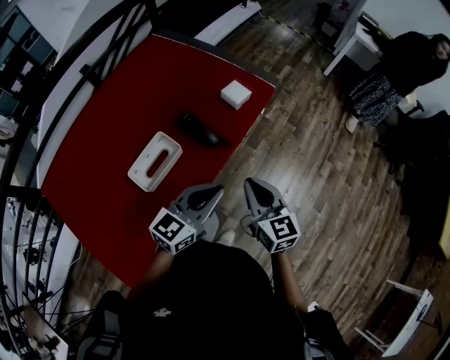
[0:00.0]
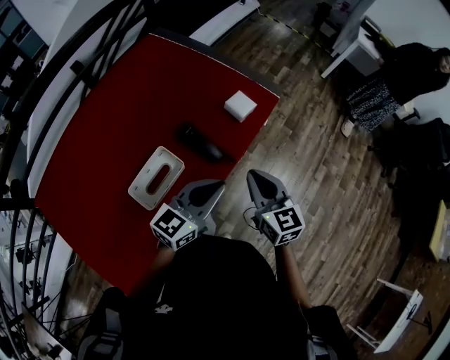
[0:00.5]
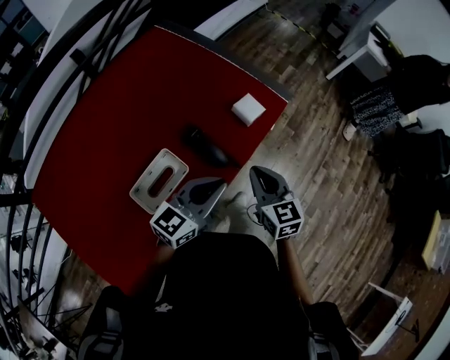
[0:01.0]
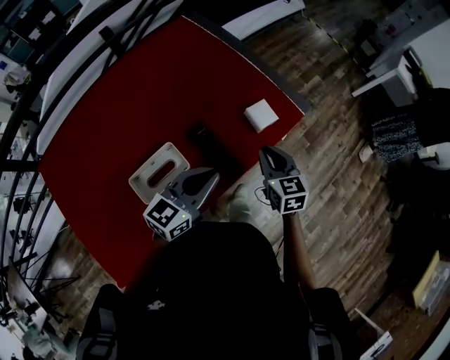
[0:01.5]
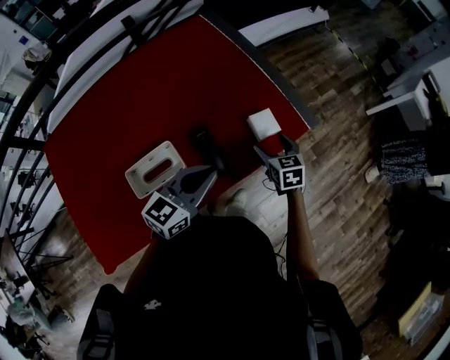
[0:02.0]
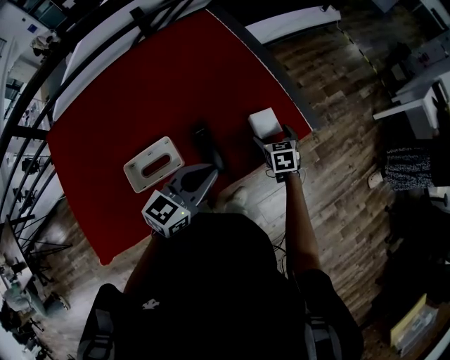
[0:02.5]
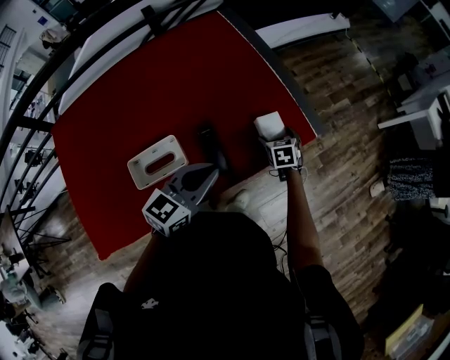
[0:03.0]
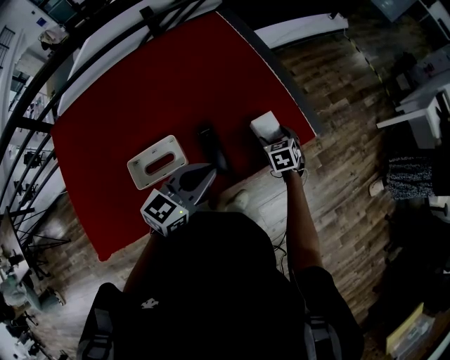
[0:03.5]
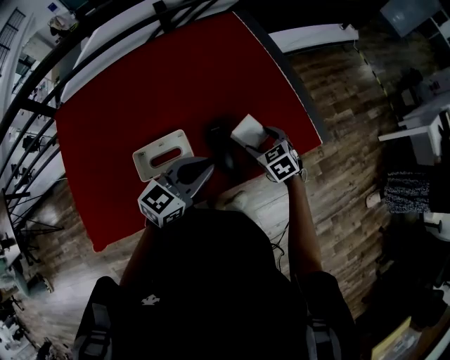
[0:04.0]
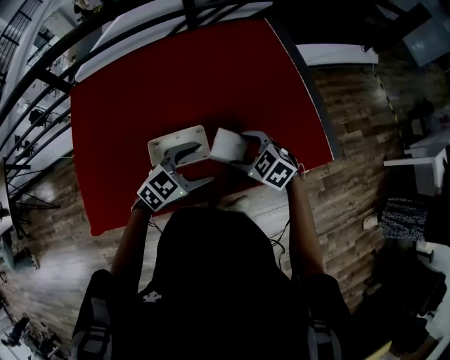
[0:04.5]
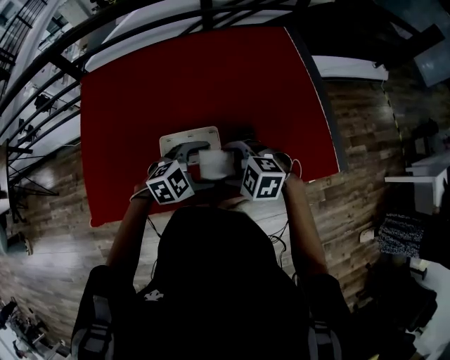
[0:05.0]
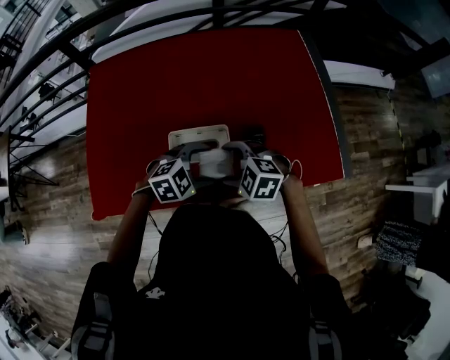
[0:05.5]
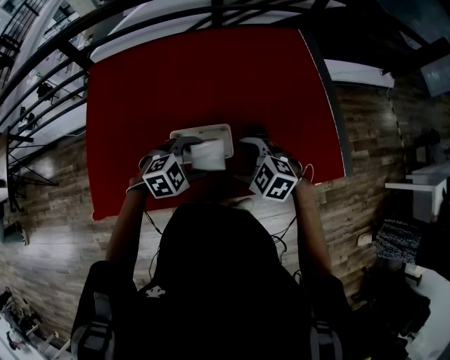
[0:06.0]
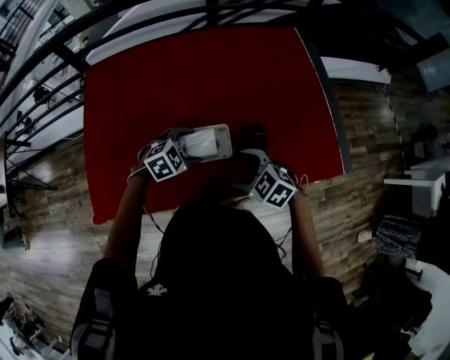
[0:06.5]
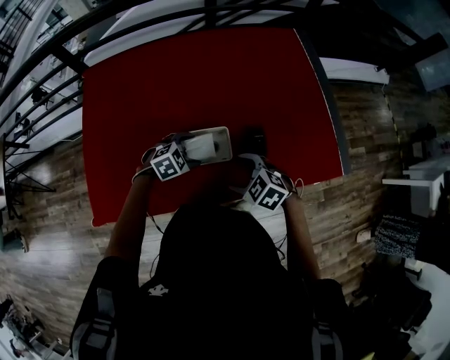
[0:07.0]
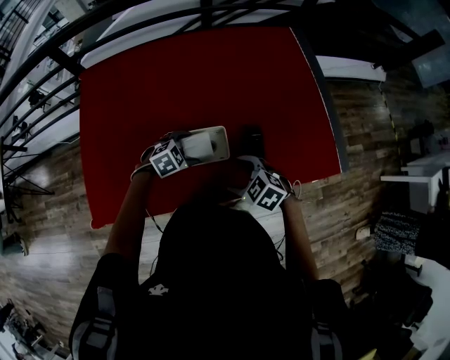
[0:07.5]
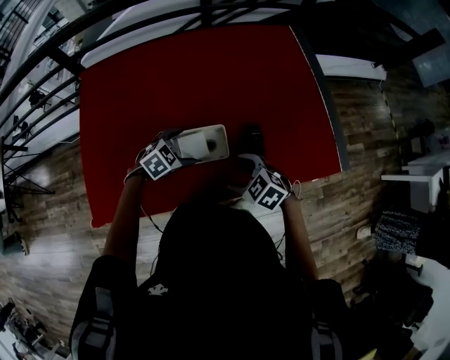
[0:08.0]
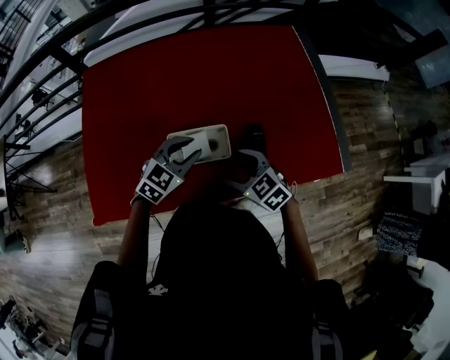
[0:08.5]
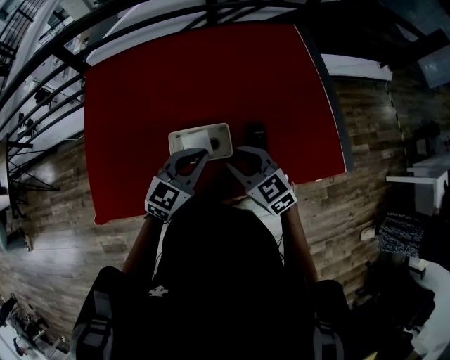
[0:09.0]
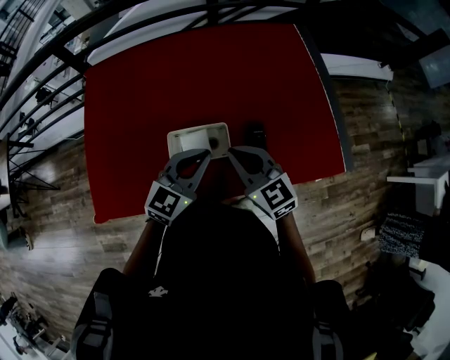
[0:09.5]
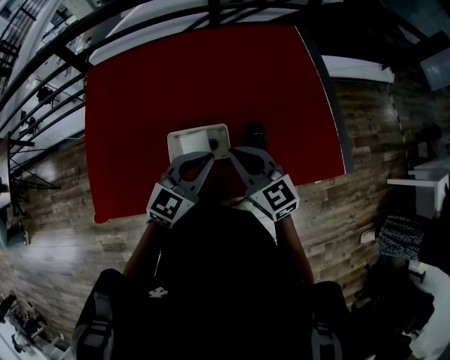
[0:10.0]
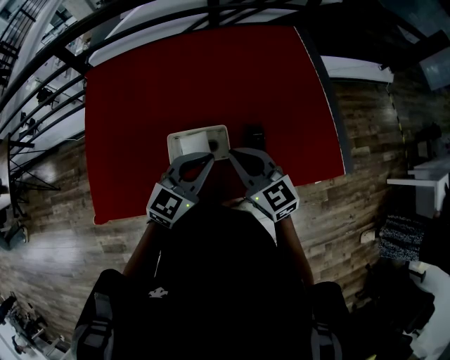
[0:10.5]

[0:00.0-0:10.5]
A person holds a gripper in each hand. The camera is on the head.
0:00.0 to 0:02.0: The right gripper is displaced forward by approximately 35 cm, rotates some 30 degrees, and opens, while the left gripper travels forward by roughly 20 cm, and swivels about 20 degrees.
0:02.0 to 0:04.0: The right gripper travels to the left by approximately 10 cm, and turns by approximately 30 degrees.
0:04.0 to 0:06.5: The right gripper shifts by roughly 25 cm, and swivels roughly 40 degrees. Meanwhile the left gripper ends up some 25 cm from where it was, angles its fingers downward, by roughly 40 degrees, and opens.
0:06.5 to 0:08.5: The left gripper travels upward by about 5 cm, swivels roughly 30 degrees, and closes.
0:08.5 to 0:10.5: Both grippers move upward, roughly 10 cm. The left gripper changes its angle by about 20 degrees. Meanwhile the right gripper changes its angle by approximately 30 degrees, and closes its fingers.

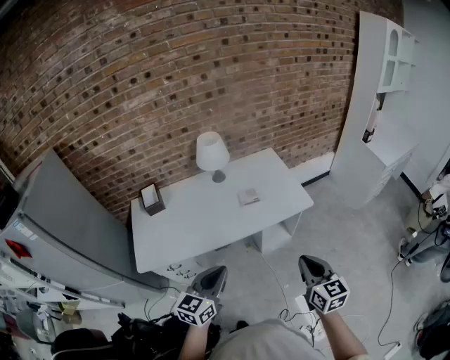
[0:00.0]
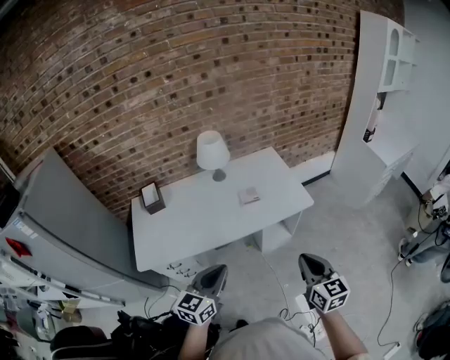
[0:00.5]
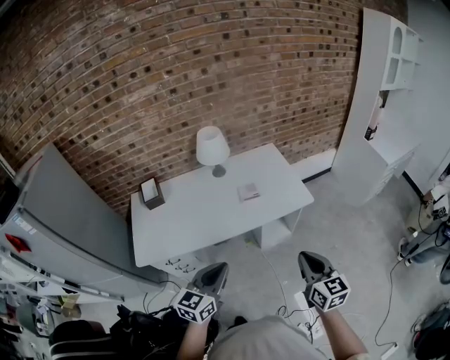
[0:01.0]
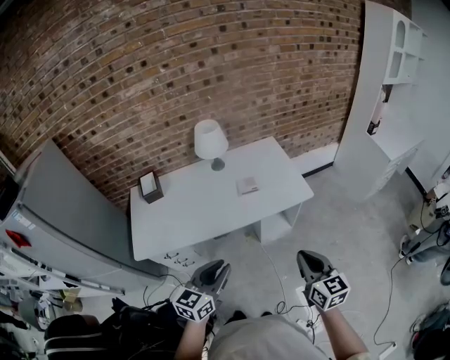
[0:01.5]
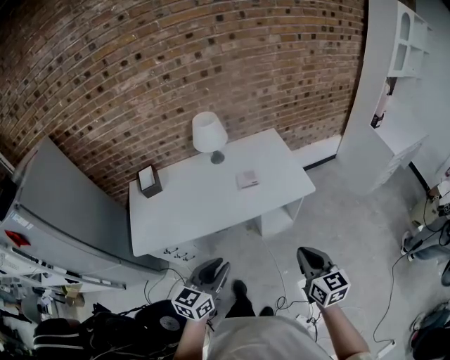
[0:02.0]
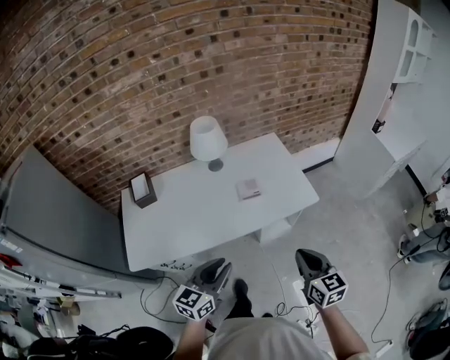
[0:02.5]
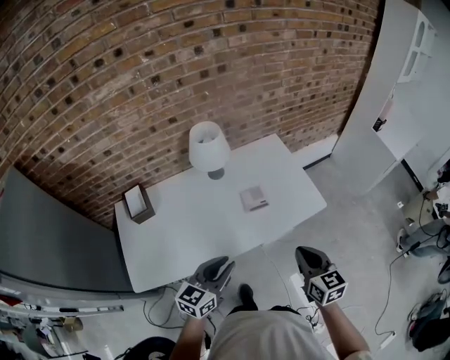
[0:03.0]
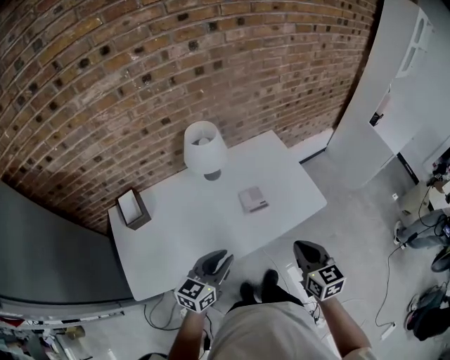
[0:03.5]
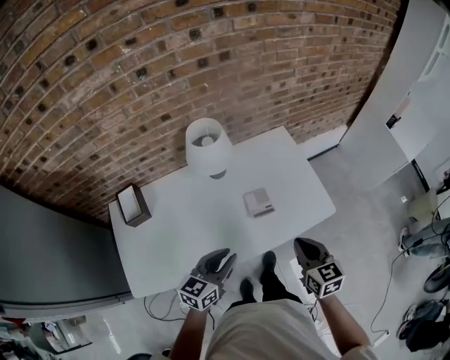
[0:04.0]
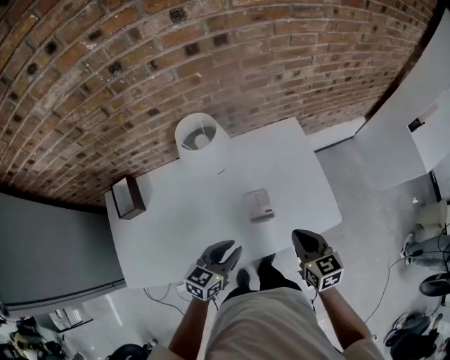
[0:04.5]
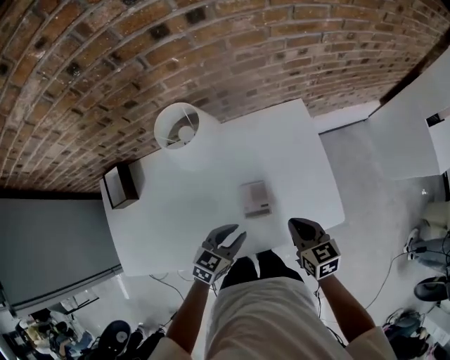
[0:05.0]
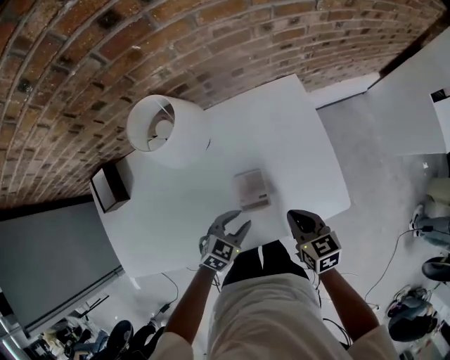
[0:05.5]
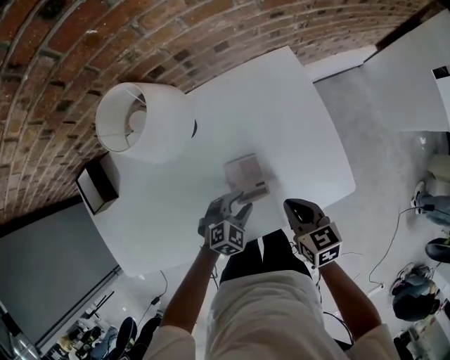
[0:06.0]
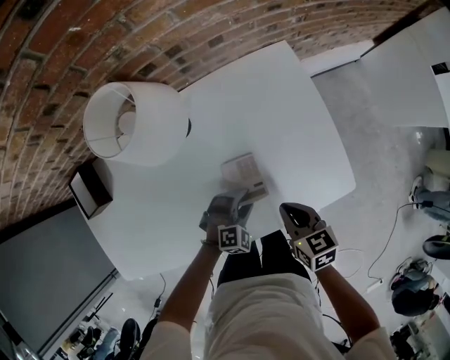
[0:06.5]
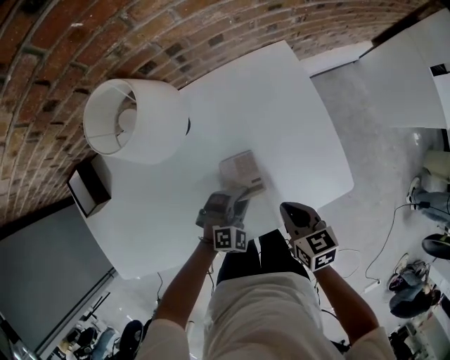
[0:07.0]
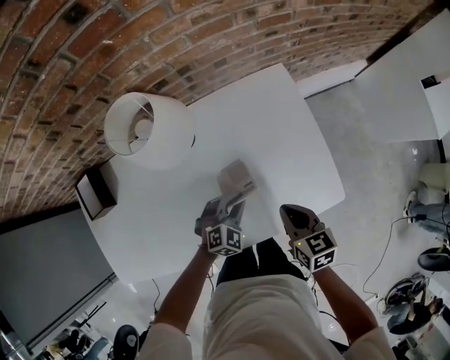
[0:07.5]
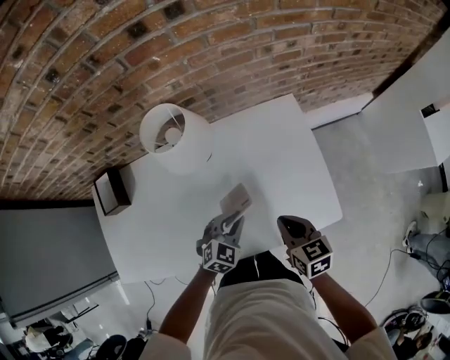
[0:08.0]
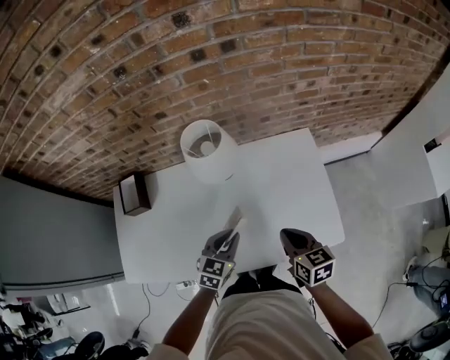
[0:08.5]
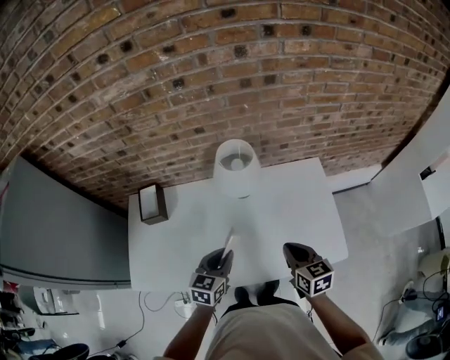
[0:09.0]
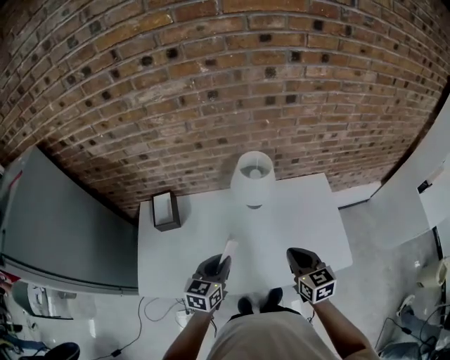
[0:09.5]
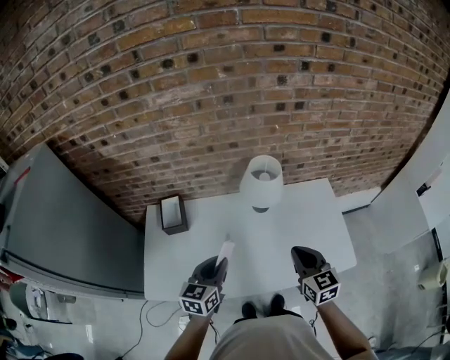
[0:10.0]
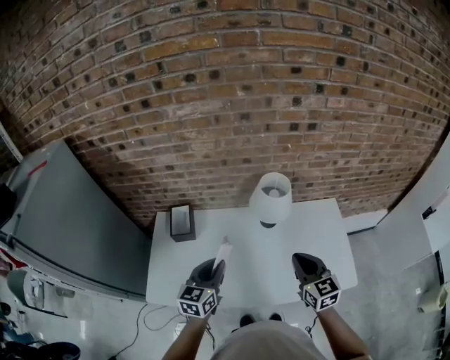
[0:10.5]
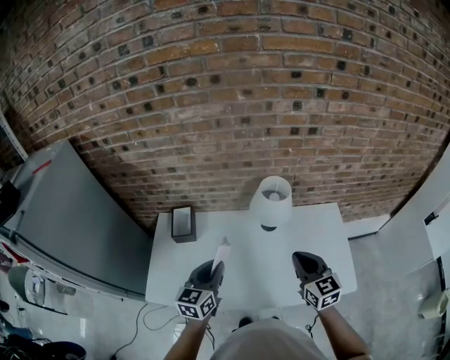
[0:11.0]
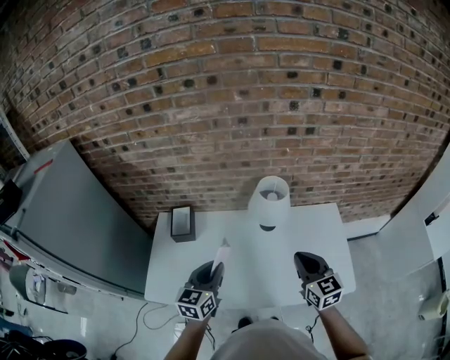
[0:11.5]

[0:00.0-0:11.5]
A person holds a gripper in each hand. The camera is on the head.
0:00.0 to 0:02.0: The left gripper shifts by about 5 cm, and opens its fingers, while the right gripper ends up approximately 5 cm from where it was.
0:02.0 to 0:04.0: The two grippers go about 35 cm forward and to the left.
0:04.0 to 0:06.0: The right gripper moves downward and forward, about 25 cm, and turns by some 20 degrees. The left gripper shifts some 35 cm downward, forward and to the right, points its fingers roughly 40 degrees further downward, and opens.
0:06.0 to 0:07.5: The left gripper changes place by about 5 cm, and closes its fingers.
0:07.5 to 0:09.5: The two grippers go approximately 35 cm upward and to the left. The right gripper changes its angle by approximately 20 degrees, while the left gripper rolls counterclockwise, seen from behind, by approximately 50 degrees.
0:09.5 to 0:11.5: The left gripper travels upward and to the left by roughly 10 cm, while the right gripper travels upward by about 10 cm.

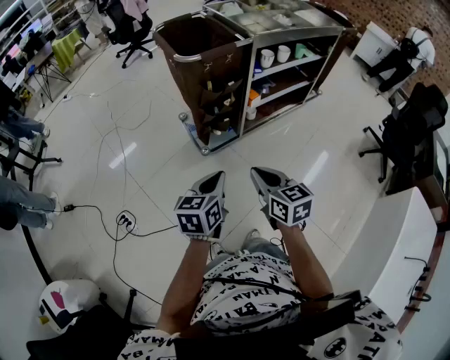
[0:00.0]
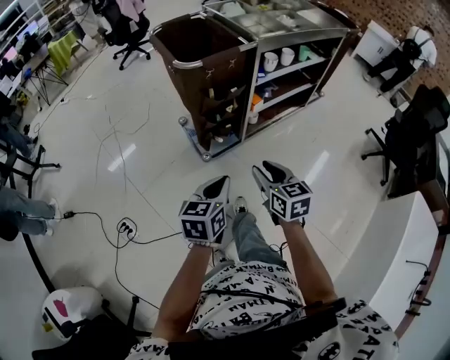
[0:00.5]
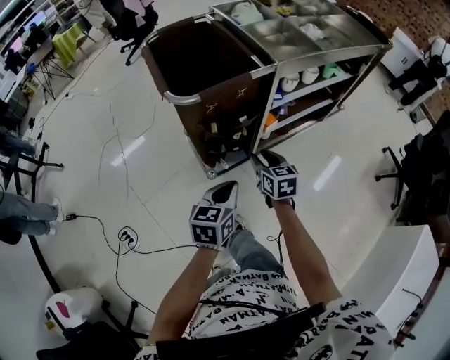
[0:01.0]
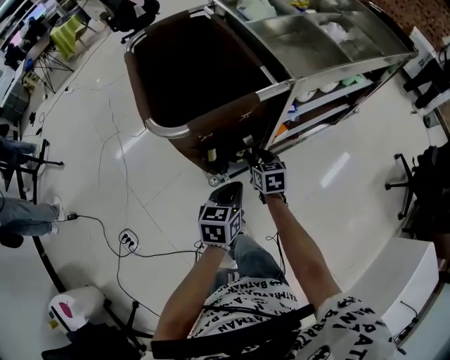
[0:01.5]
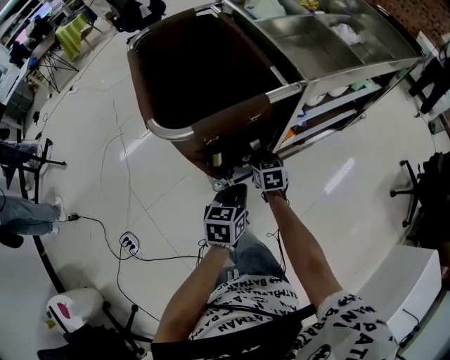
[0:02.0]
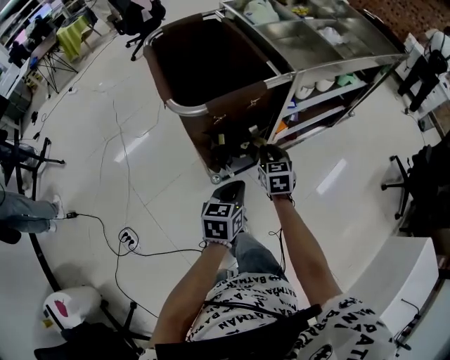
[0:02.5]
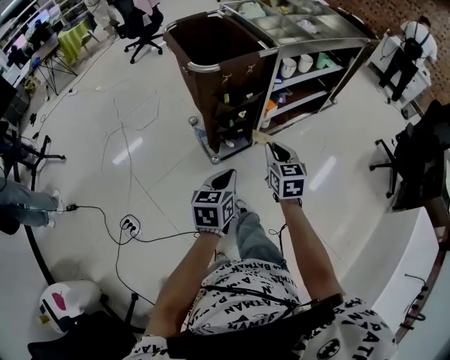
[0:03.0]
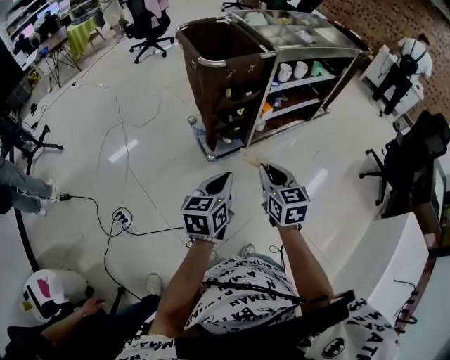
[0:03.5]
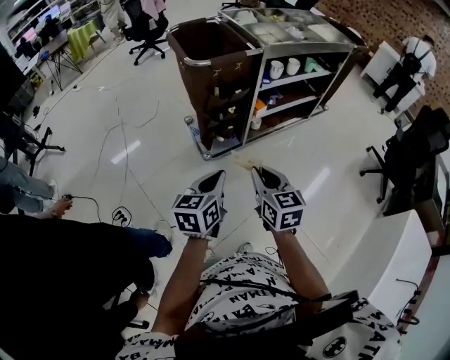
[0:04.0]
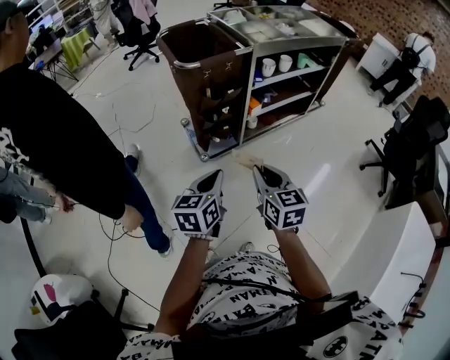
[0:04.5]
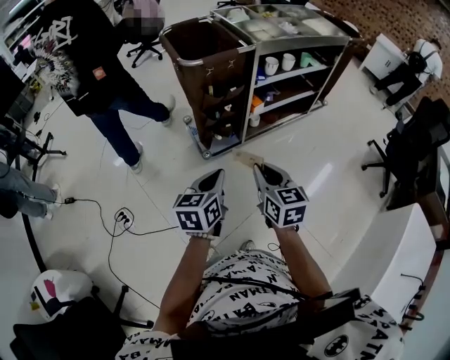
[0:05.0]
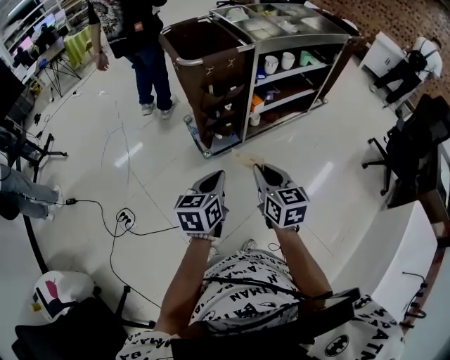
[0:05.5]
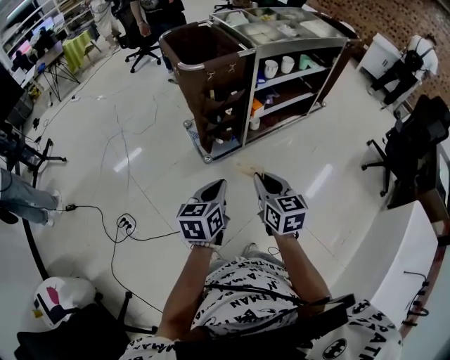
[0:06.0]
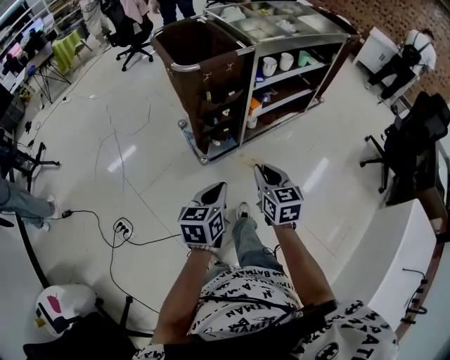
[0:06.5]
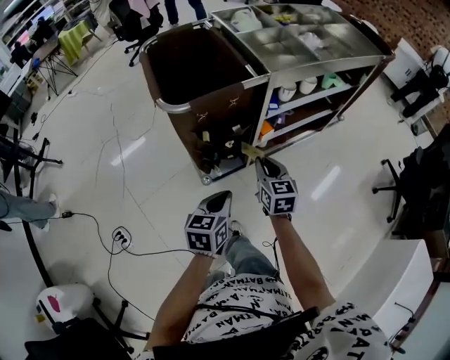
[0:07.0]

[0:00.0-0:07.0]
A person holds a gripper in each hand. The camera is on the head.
0:00.0 to 0:02.0: The grippers both shift forward and downward by some 50 cm. The right gripper opens, then closes once more.
0:02.0 to 0:03.5: Both grippers travel together backward and upward, some 40 cm.
0:03.5 to 0:05.0: The right gripper ends up some 5 cm from where it was.
0:05.0 to 0:07.0: The grippers both shift forward by about 25 cm.
